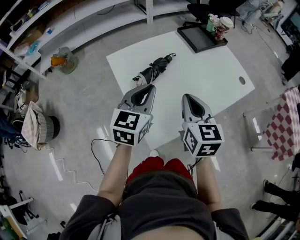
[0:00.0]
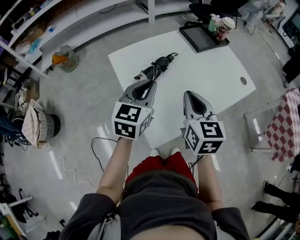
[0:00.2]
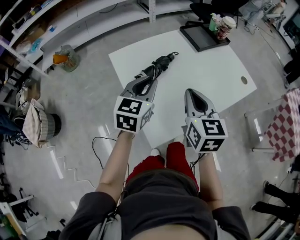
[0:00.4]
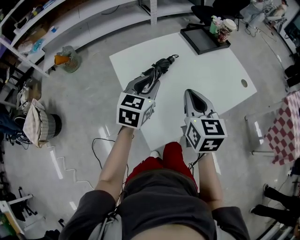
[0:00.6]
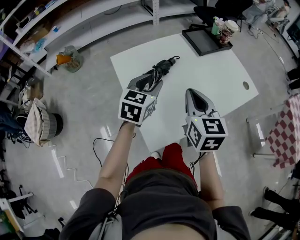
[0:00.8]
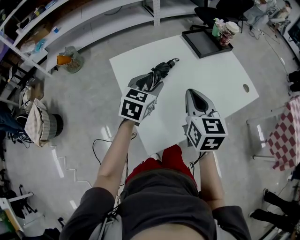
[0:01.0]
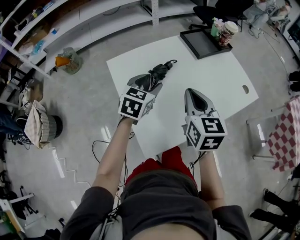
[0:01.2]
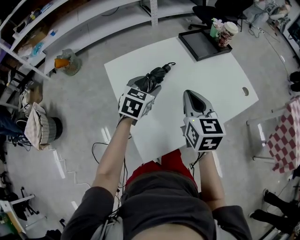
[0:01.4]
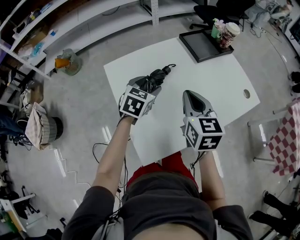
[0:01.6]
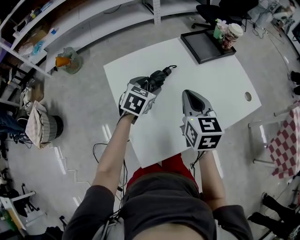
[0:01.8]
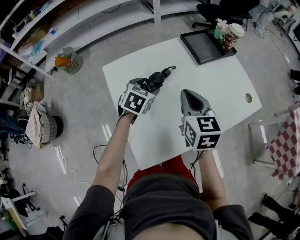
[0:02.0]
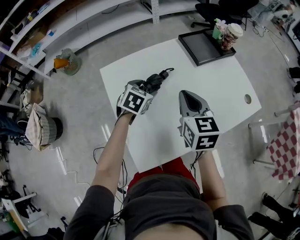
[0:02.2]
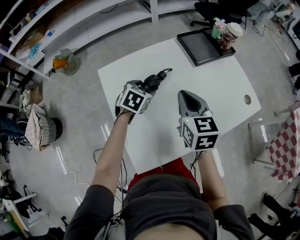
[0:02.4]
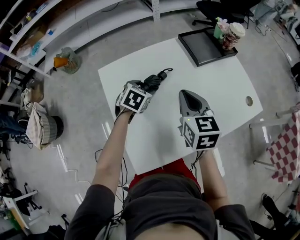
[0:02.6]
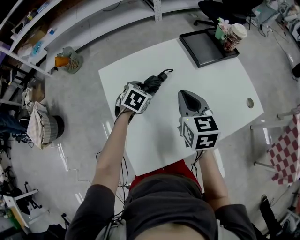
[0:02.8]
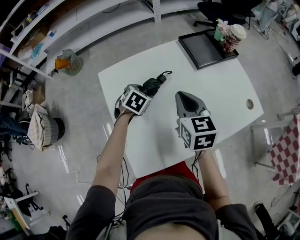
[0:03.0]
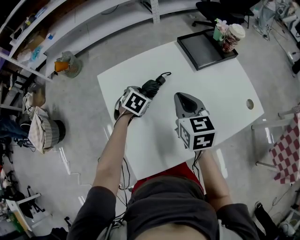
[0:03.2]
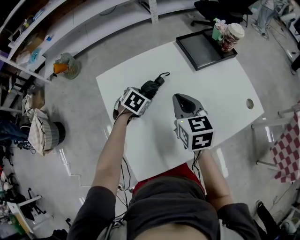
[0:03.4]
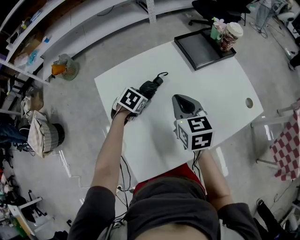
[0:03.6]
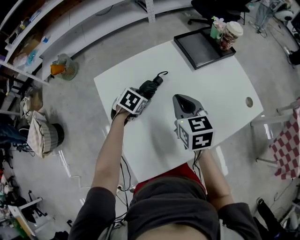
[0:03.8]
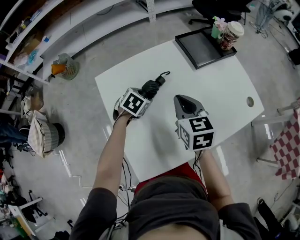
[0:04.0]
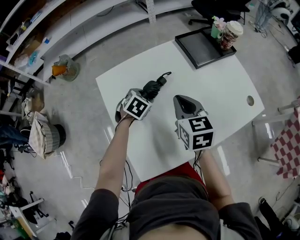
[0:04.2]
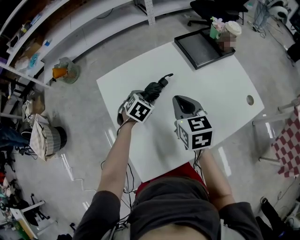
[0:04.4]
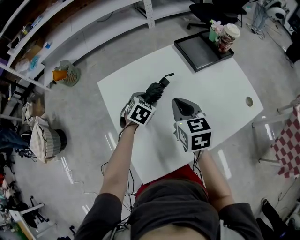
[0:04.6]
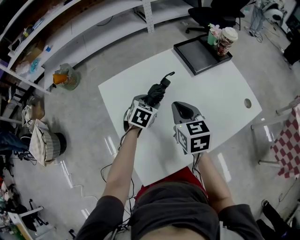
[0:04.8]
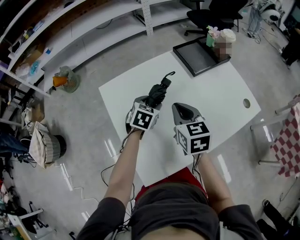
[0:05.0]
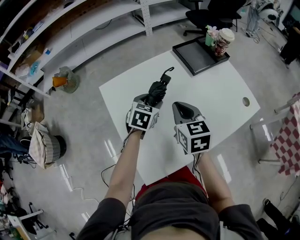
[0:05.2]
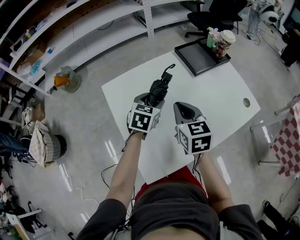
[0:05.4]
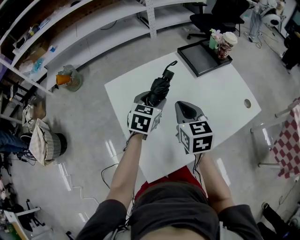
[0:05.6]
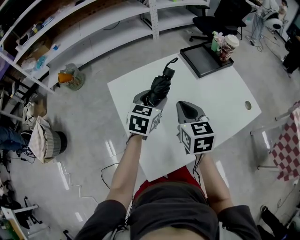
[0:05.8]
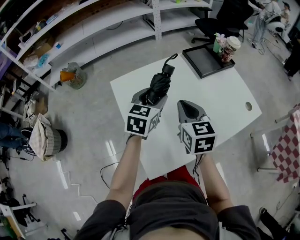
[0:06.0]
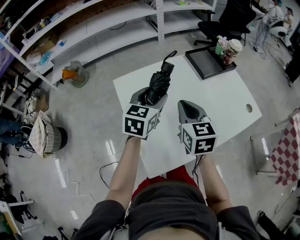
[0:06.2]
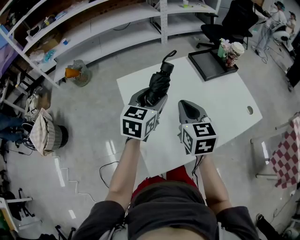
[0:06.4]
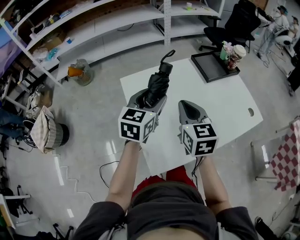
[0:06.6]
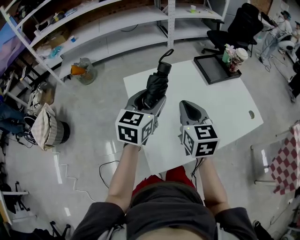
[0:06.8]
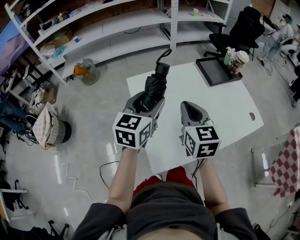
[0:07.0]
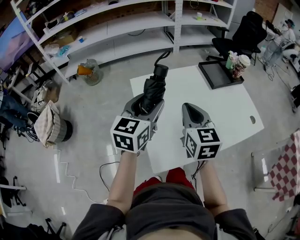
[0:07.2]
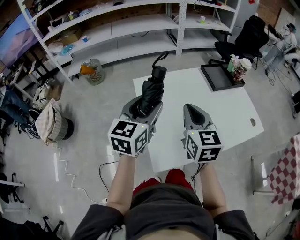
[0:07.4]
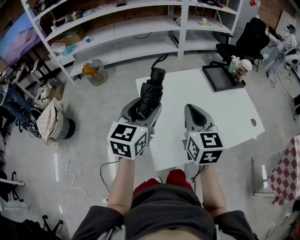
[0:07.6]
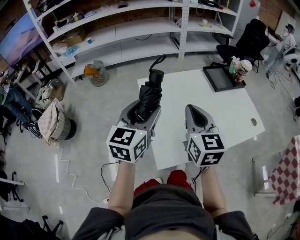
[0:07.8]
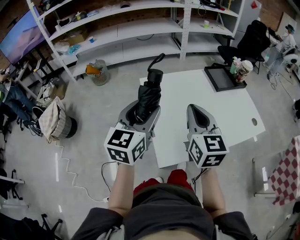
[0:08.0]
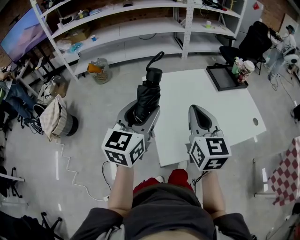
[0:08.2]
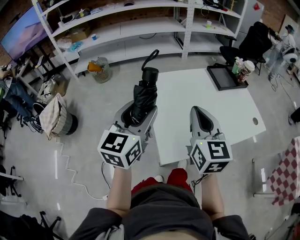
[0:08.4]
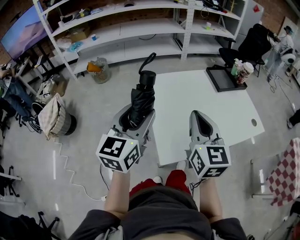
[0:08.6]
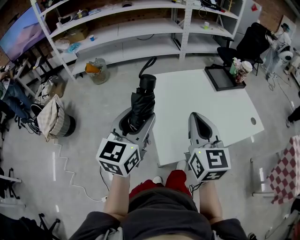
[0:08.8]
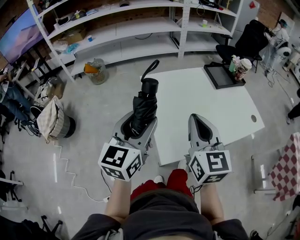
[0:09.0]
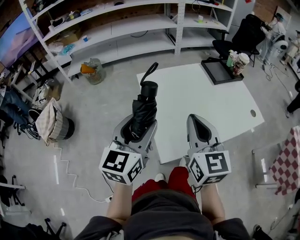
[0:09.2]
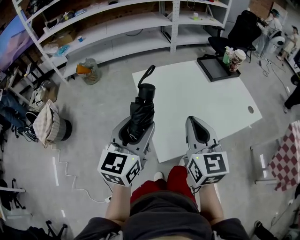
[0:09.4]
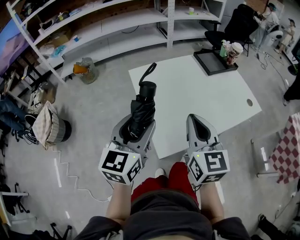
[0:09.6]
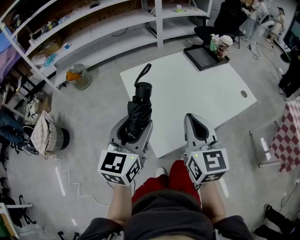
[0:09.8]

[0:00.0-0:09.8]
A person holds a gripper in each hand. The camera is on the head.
0.0 to 1.4 s: The left gripper shifts about 15 cm forward and downward, and opens up, while the right gripper moves forward, some 10 cm.
1.4 to 2.8 s: The left gripper goes some 15 cm downward and forward, and turns by some 20 degrees, while the right gripper moves forward, about 10 cm.
2.8 to 4.2 s: The grippers make only small movements.
4.2 to 5.6 s: The left gripper shifts approximately 15 cm upward, and rotates some 30 degrees. Meanwhile the right gripper ends up roughly 5 cm from where it was.
5.6 to 7.0 s: The right gripper goes approximately 10 cm upward, backward and to the left. Meanwhile the left gripper moves upward, backward and to the left, roughly 20 cm, and turns by approximately 20 degrees.
7.0 to 8.4 s: The right gripper moves backward and upward, approximately 10 cm. Meanwhile the left gripper travels backward, to the left and upward by about 15 cm.
8.4 to 9.8 s: The right gripper is displaced backward by roughly 5 cm, while the left gripper moves about 5 cm.

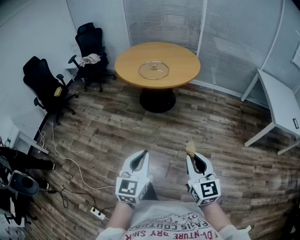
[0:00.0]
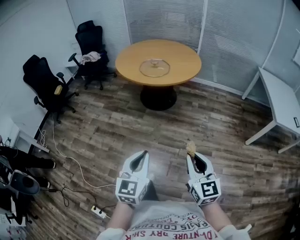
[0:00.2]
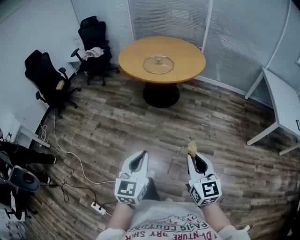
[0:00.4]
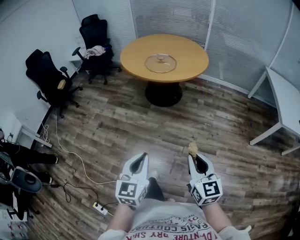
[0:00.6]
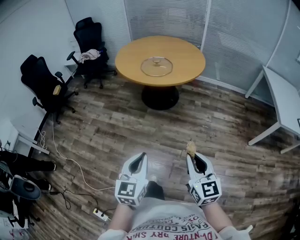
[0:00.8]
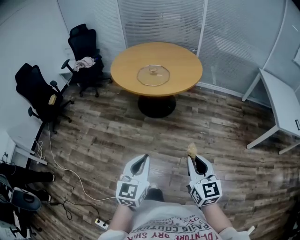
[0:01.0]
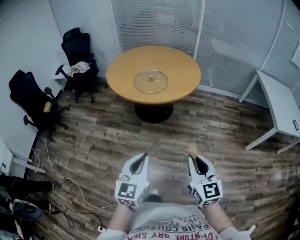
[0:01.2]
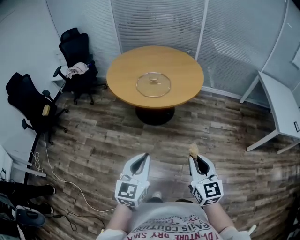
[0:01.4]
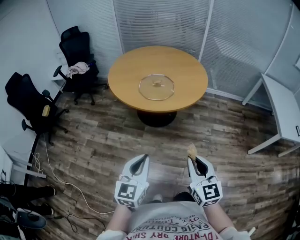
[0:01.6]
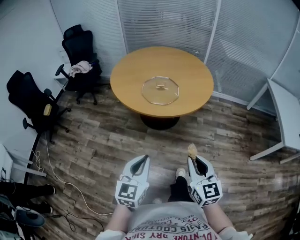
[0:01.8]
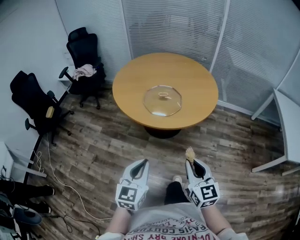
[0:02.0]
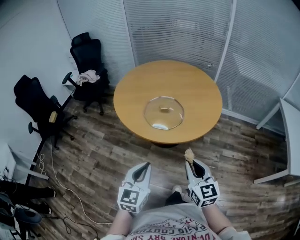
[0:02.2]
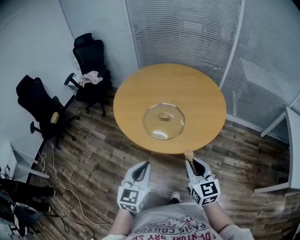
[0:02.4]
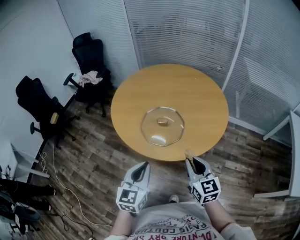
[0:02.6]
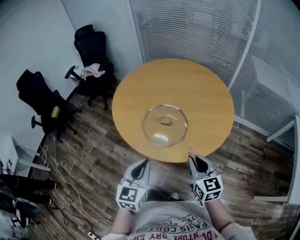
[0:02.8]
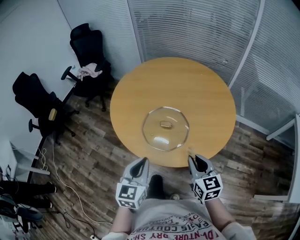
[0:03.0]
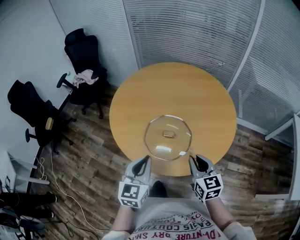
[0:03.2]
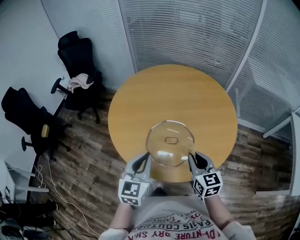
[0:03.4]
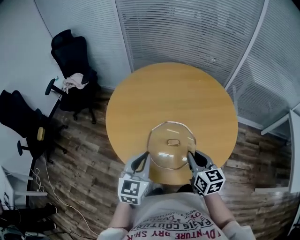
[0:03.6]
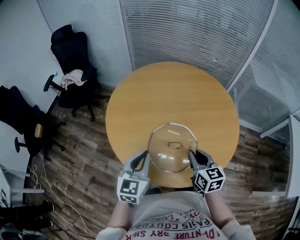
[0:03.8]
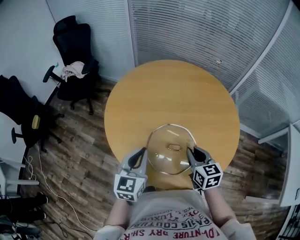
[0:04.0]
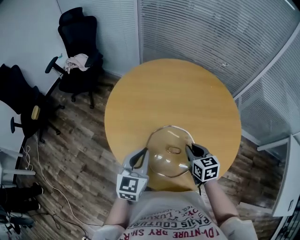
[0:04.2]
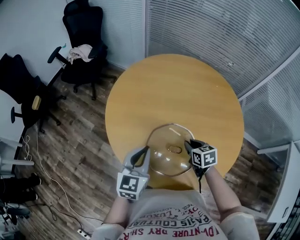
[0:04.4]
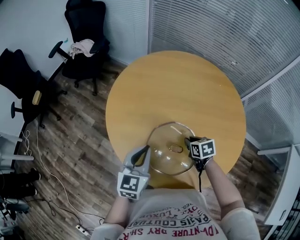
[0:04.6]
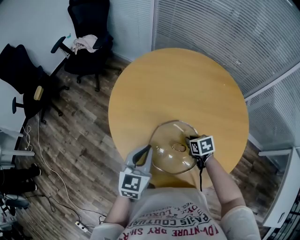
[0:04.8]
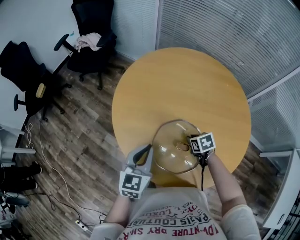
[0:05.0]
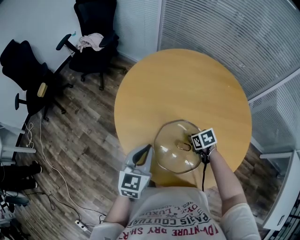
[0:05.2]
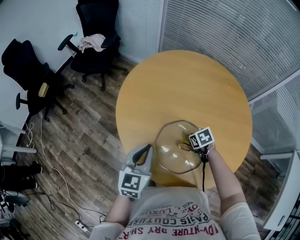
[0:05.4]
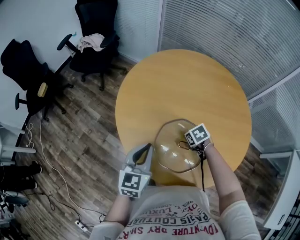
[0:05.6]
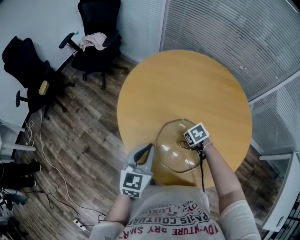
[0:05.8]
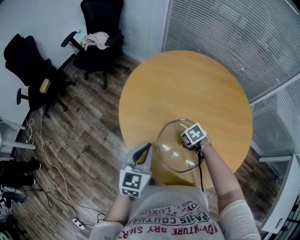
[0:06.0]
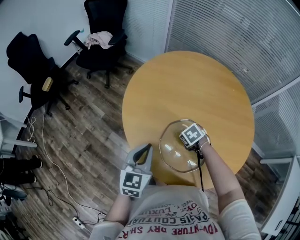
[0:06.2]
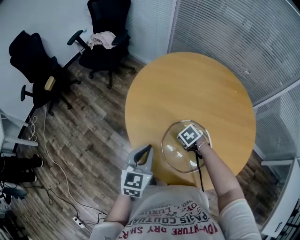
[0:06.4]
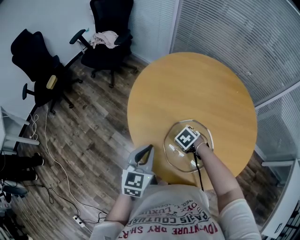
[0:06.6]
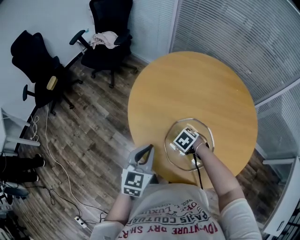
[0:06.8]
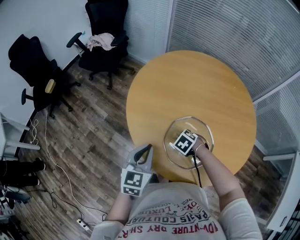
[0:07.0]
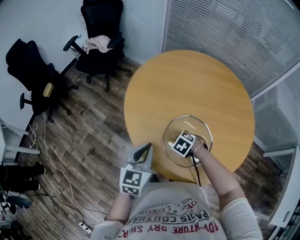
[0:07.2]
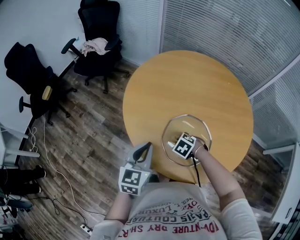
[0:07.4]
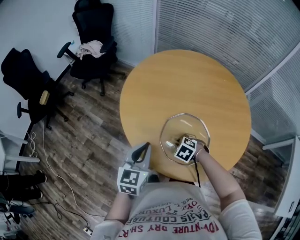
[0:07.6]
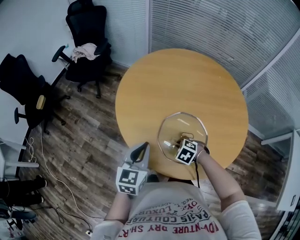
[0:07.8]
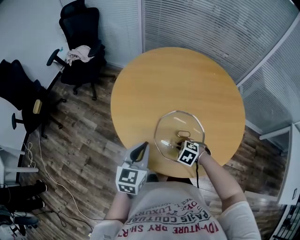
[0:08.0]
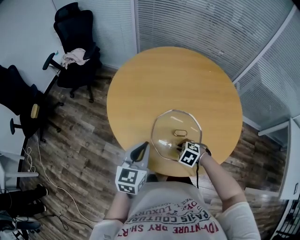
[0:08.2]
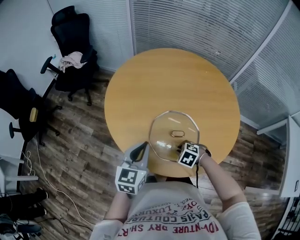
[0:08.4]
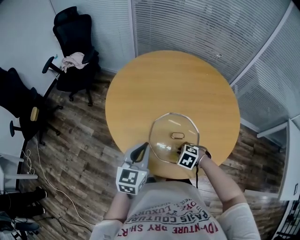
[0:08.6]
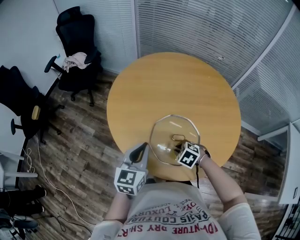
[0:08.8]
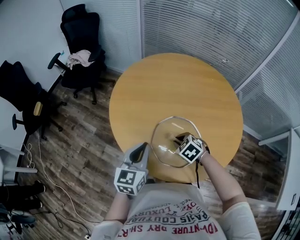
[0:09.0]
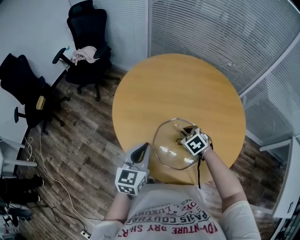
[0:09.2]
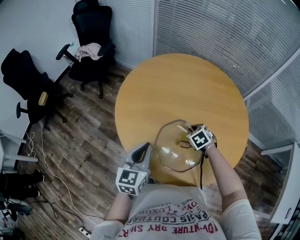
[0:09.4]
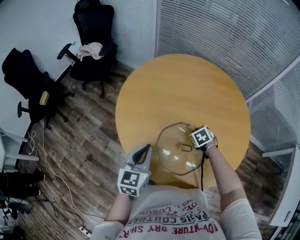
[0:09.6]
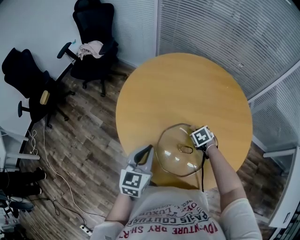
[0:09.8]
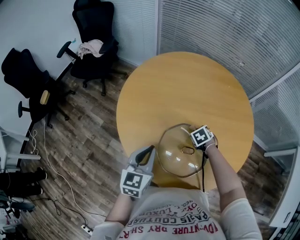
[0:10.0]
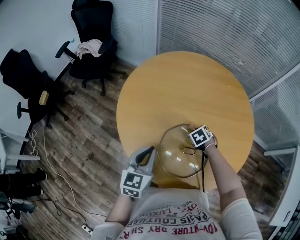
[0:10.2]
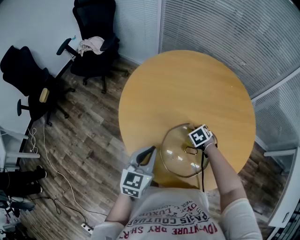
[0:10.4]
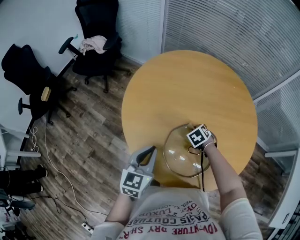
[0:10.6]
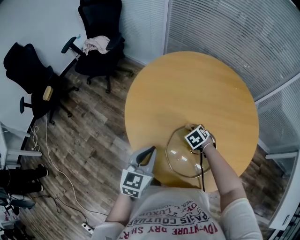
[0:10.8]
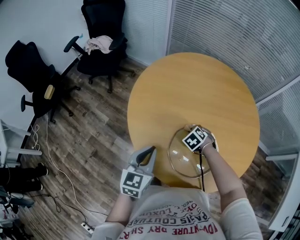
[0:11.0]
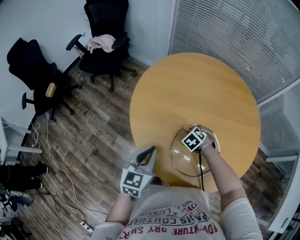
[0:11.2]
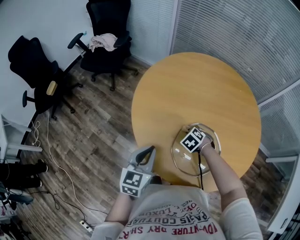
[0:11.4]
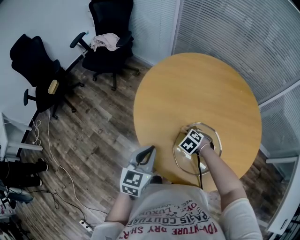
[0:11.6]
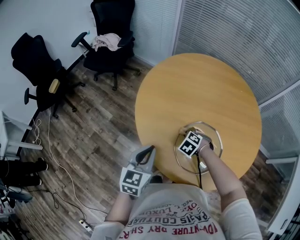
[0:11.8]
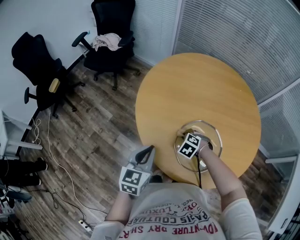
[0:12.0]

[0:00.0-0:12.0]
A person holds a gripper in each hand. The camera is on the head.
0.0 to 1.6 s: Both grippers travel together forward, about 30 cm.
1.6 to 3.0 s: The pair of grippers is taken forward, some 40 cm.
3.0 to 4.4 s: The right gripper goes roughly 30 cm forward and downward, and rotates some 30 degrees. The left gripper heads forward, covering about 25 cm.
4.4 to 6.0 s: The left gripper moves some 5 cm; the right gripper shifts by about 10 cm, and turns by about 40 degrees.
6.0 to 7.6 s: The right gripper changes place by roughly 10 cm, and turns by some 30 degrees.
7.6 to 9.0 s: The left gripper moves roughly 5 cm; the right gripper moves upward, some 5 cm.
9.0 to 10.4 s: The left gripper changes place by some 5 cm, while the right gripper changes place by some 15 cm.
10.4 to 12.0 s: The right gripper goes some 15 cm to the left and backward, and turns by approximately 30 degrees; the left gripper heads to the left and backward, covering roughly 10 cm.

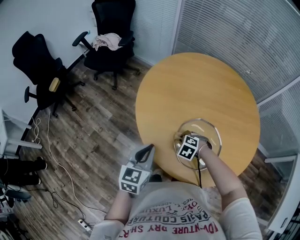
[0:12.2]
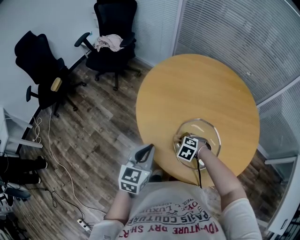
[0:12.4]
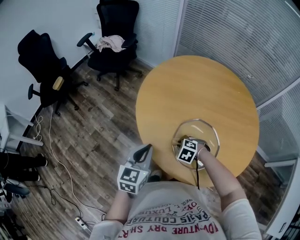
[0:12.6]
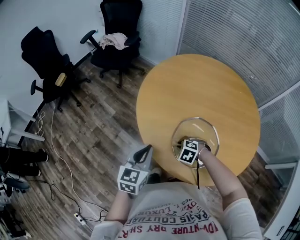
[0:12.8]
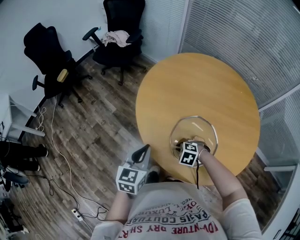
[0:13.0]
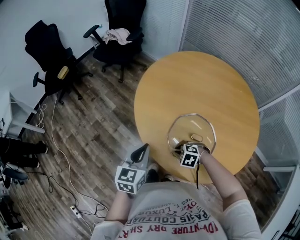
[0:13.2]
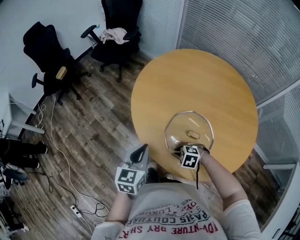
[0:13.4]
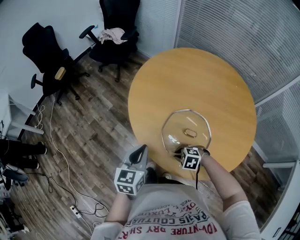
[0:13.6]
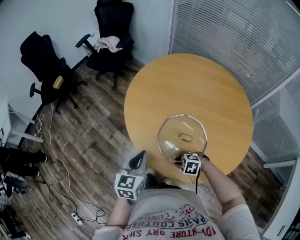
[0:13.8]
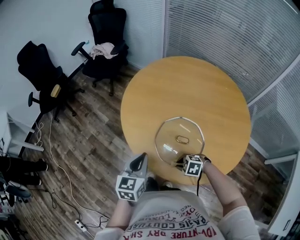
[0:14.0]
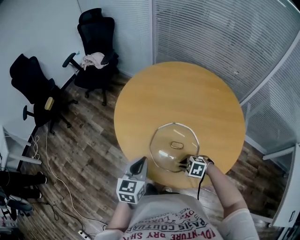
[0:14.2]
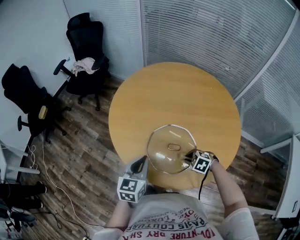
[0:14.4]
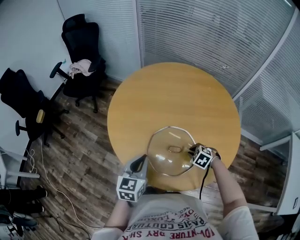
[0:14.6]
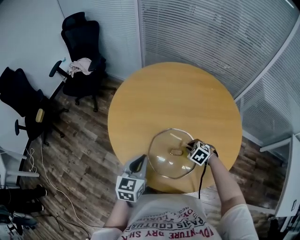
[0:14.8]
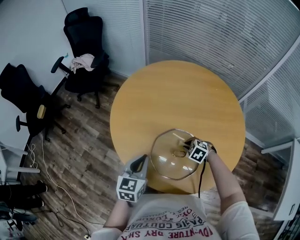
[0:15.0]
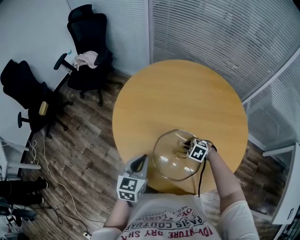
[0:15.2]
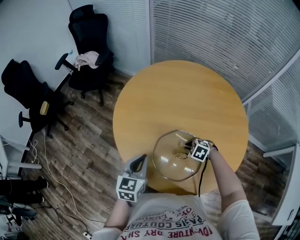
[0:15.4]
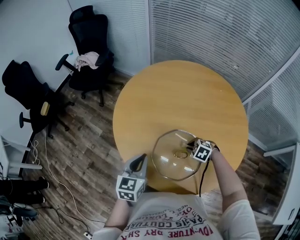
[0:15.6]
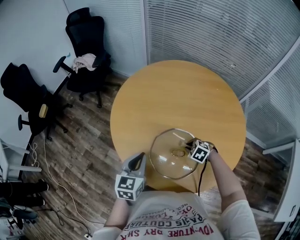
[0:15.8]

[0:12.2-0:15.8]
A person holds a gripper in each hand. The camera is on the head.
12.2 to 14.0 s: The left gripper changes place by some 10 cm, while the right gripper changes place by roughly 20 cm, and rotates about 20 degrees.
14.0 to 15.8 s: The right gripper ends up about 20 cm from where it was, and rotates approximately 30 degrees, while the left gripper shifts by about 10 cm.
